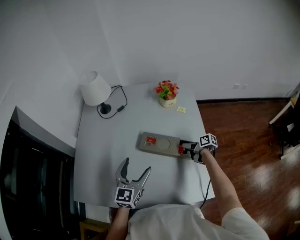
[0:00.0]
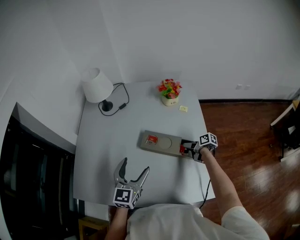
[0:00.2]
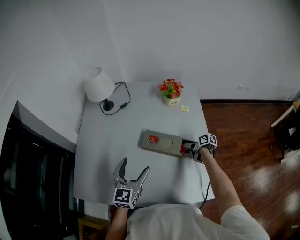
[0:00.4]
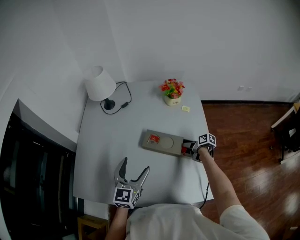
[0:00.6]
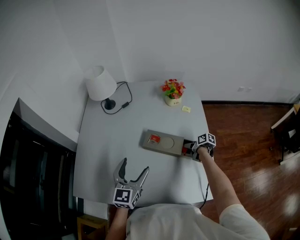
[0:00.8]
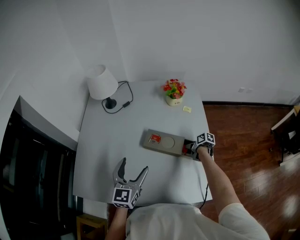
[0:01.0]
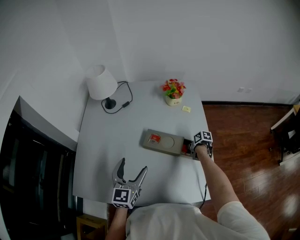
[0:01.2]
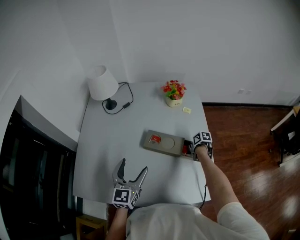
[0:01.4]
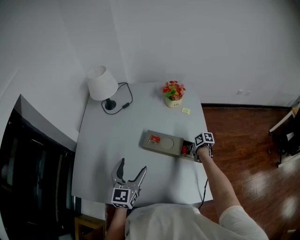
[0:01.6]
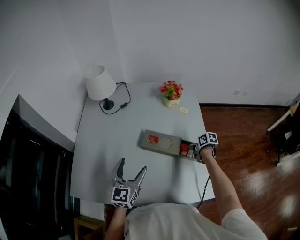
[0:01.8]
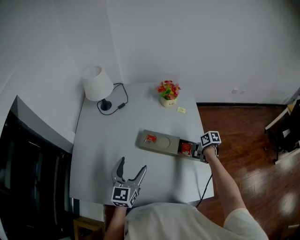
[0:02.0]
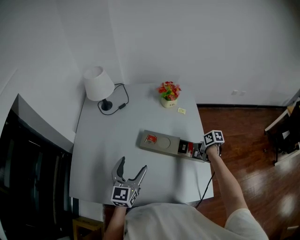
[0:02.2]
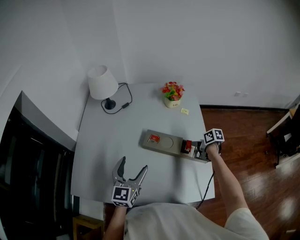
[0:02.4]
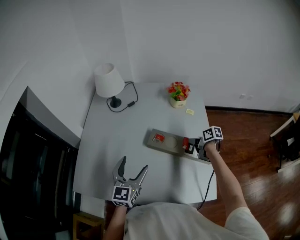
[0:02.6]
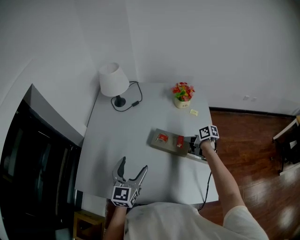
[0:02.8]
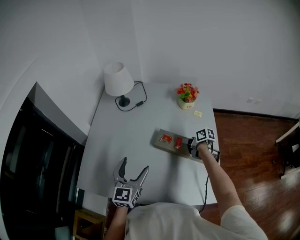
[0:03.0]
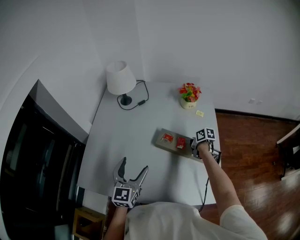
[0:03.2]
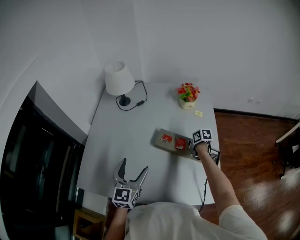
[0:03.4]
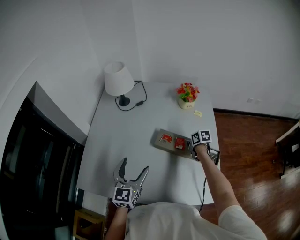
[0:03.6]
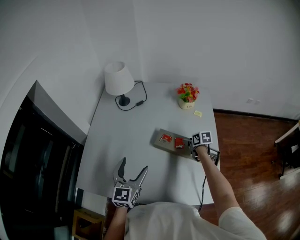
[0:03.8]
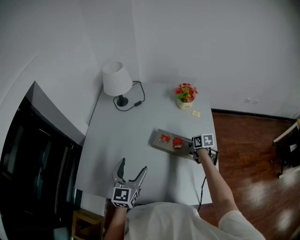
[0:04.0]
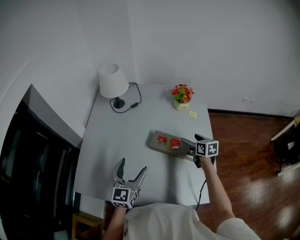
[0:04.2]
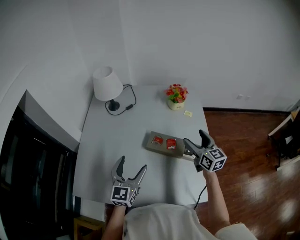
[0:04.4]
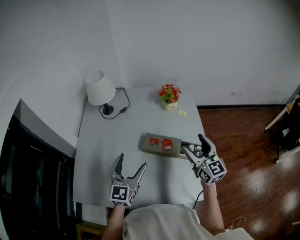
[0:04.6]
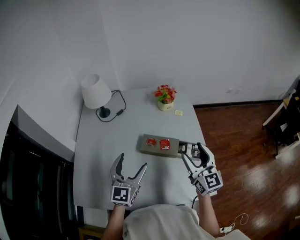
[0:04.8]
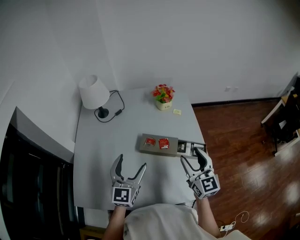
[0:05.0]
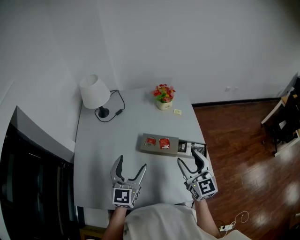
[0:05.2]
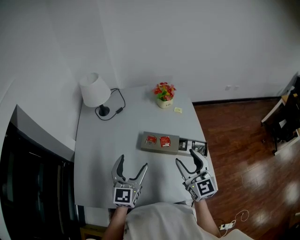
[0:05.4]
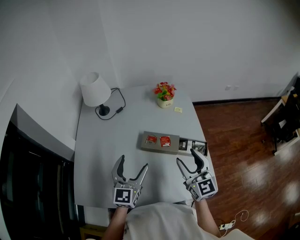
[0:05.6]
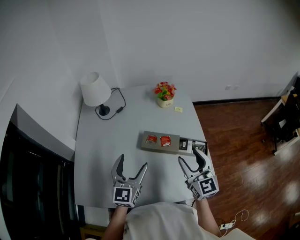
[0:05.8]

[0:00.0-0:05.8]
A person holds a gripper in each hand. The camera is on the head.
0.0 to 1.4 s: The right gripper heads downward, covering about 5 cm, swivels approximately 30 degrees, and closes.
1.4 to 2.8 s: The right gripper moves upward, to the left and forward, about 15 cm, and turns by approximately 30 degrees.
2.8 to 4.4 s: The right gripper moves upward, some 15 cm, swivels approximately 60 degrees, and opens its fingers.
4.4 to 5.8 s: The right gripper moves backward, approximately 15 cm, and turns by some 20 degrees.

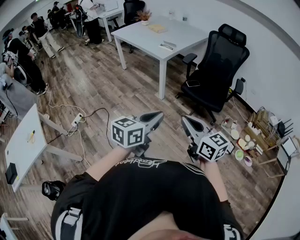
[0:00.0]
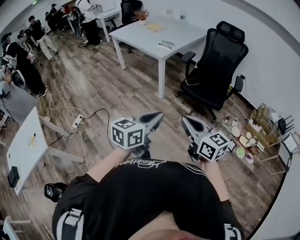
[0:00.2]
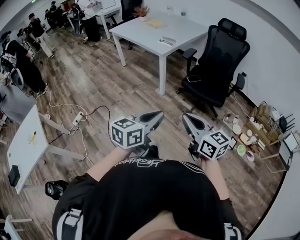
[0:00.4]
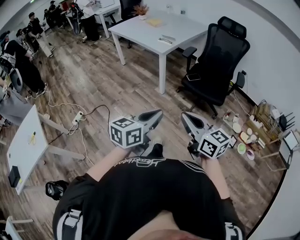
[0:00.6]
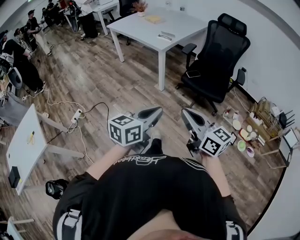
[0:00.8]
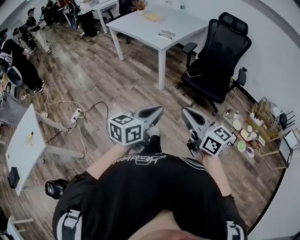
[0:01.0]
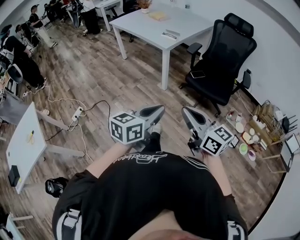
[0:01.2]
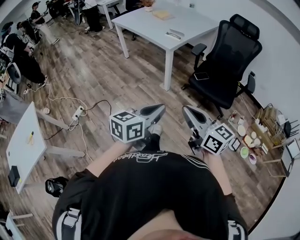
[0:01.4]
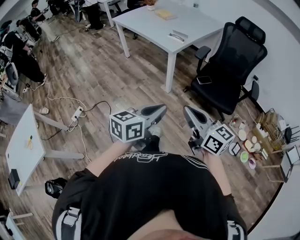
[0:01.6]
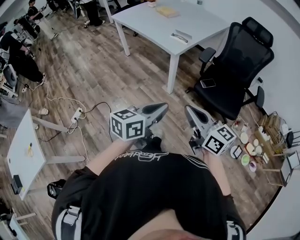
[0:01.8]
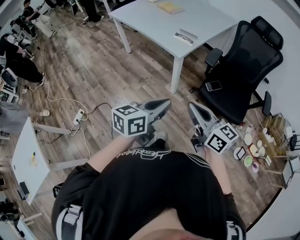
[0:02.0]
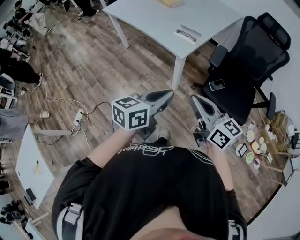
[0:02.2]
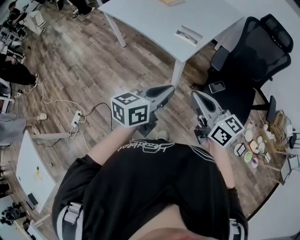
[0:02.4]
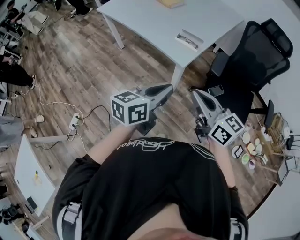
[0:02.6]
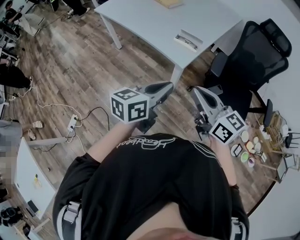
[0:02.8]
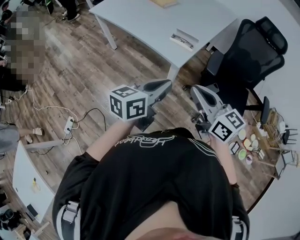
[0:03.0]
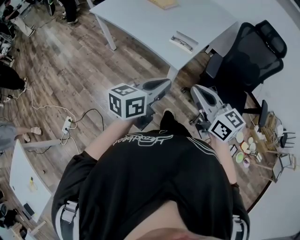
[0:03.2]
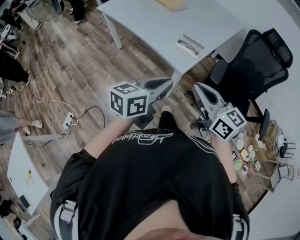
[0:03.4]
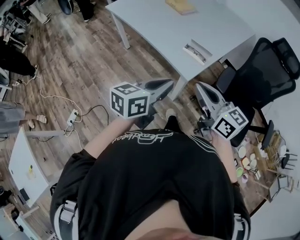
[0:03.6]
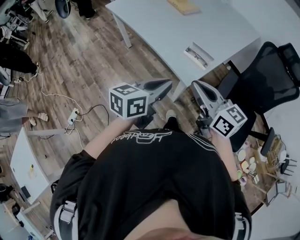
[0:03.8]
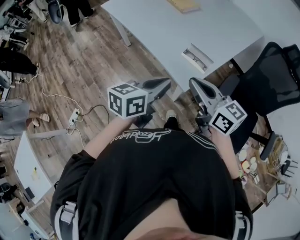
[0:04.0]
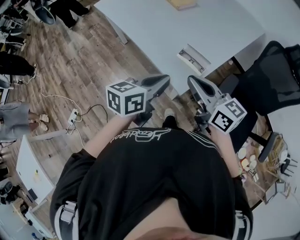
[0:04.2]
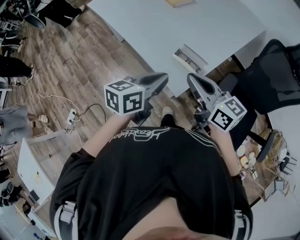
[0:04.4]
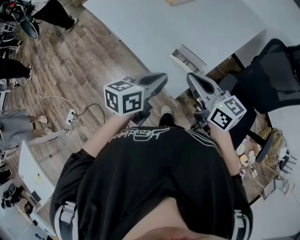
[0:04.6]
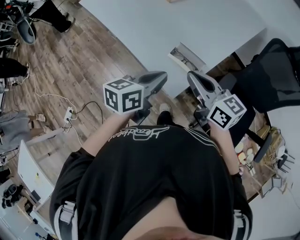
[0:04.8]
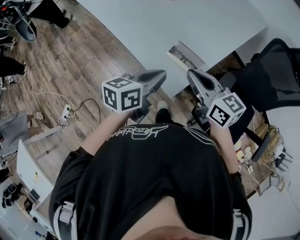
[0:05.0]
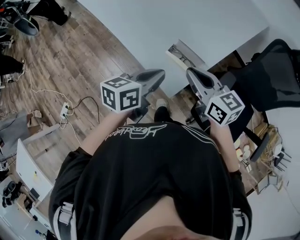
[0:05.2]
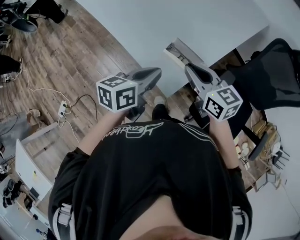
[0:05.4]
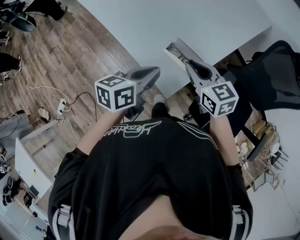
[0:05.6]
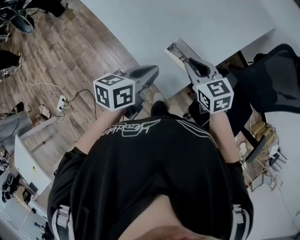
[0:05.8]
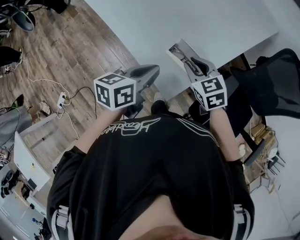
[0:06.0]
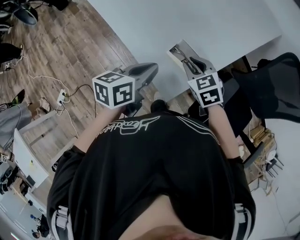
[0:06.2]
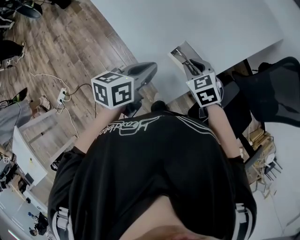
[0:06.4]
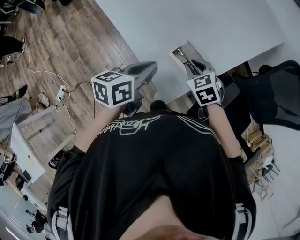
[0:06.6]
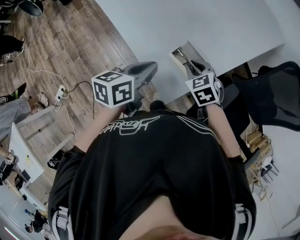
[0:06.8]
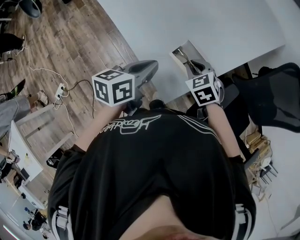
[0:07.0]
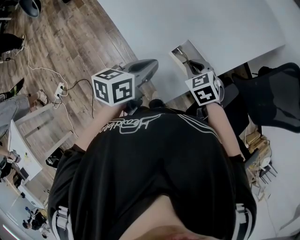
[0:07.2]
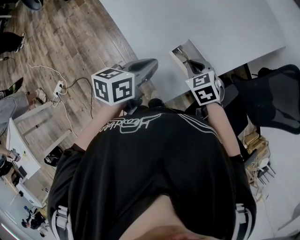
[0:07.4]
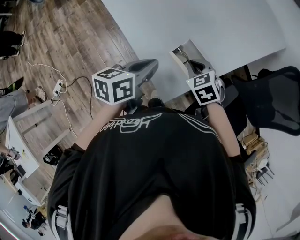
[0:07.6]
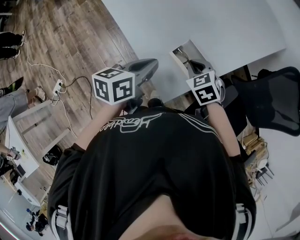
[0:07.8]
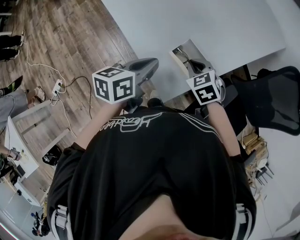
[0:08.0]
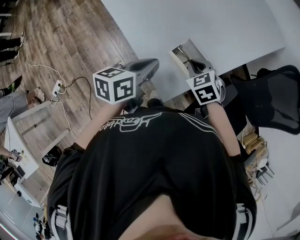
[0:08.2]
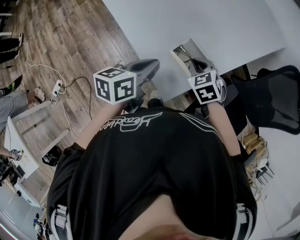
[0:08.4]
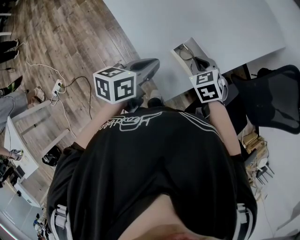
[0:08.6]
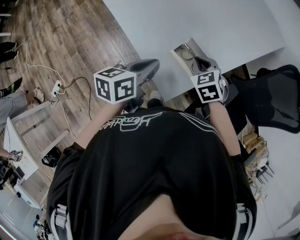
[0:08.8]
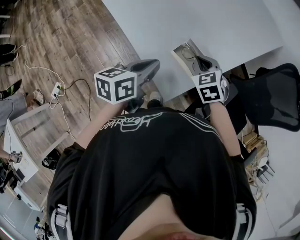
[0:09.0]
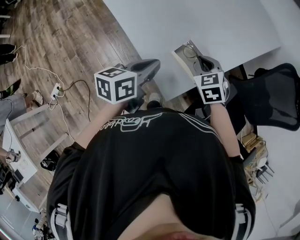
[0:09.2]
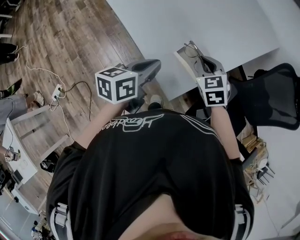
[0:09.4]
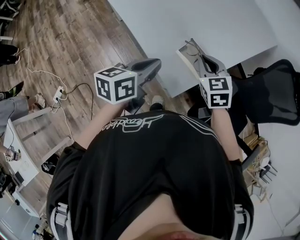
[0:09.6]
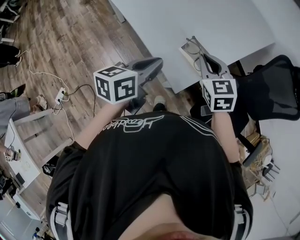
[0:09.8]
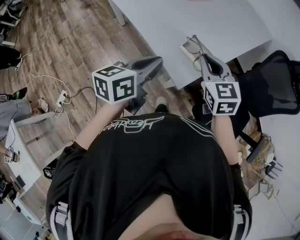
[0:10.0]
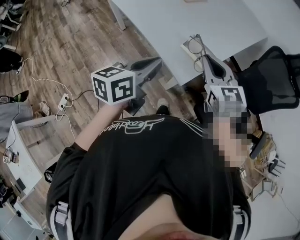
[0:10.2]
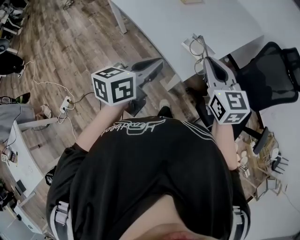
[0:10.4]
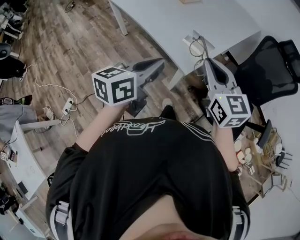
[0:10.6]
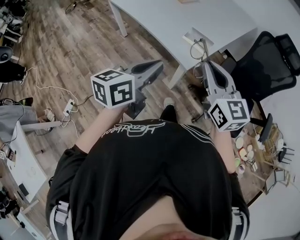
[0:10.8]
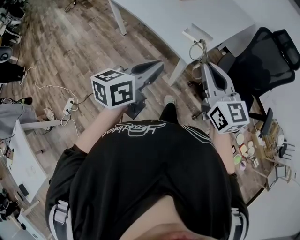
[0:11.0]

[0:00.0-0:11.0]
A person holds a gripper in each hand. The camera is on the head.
0.0 to 1.6 s: The two grippers go about 15 cm forward.
1.6 to 3.2 s: Both grippers travel together forward, approximately 40 cm.
3.2 to 4.8 s: Both grippers move forward, roughly 25 cm.
4.8 to 6.2 s: The left gripper shifts some 10 cm downward and forward; the right gripper goes about 20 cm downward and forward, and points its fingers about 40 degrees further downward.
6.2 to 7.8 s: The grippers move only a little.
7.8 to 9.4 s: The right gripper moves upward, some 5 cm.
9.4 to 11.0 s: The two grippers go approximately 35 cm backward and upward. The right gripper tilts its fingers some 40 degrees upward.

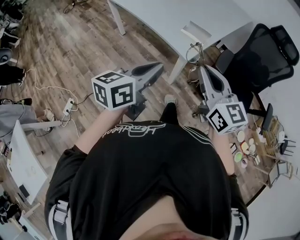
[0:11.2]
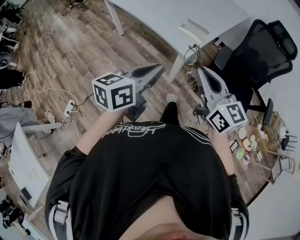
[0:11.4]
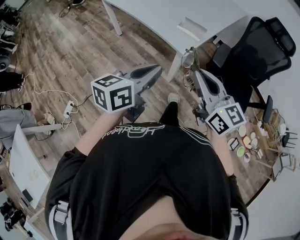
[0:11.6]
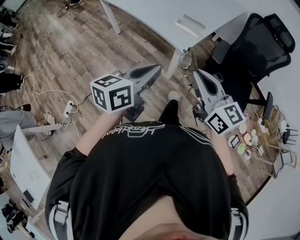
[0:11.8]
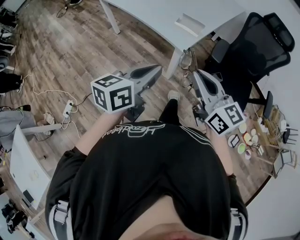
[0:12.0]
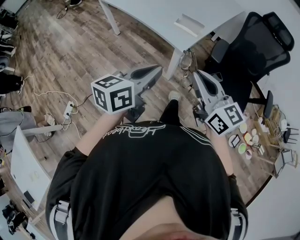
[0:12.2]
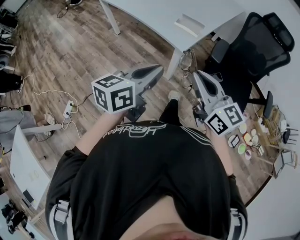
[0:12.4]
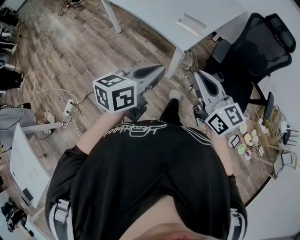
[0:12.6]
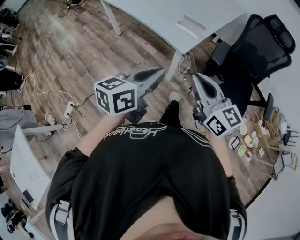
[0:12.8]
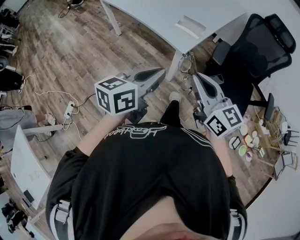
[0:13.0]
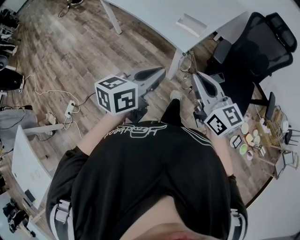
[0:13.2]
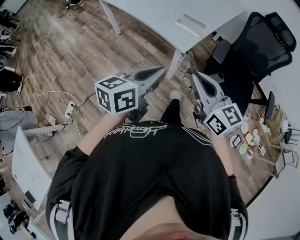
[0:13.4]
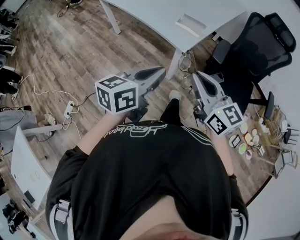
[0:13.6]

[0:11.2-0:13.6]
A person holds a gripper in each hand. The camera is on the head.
11.2 to 12.4 s: The right gripper travels backward by approximately 5 cm.
12.4 to 13.6 s: The grippers make only small movements.

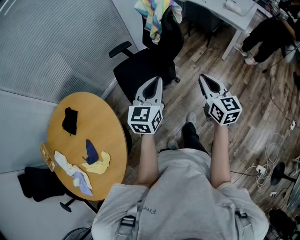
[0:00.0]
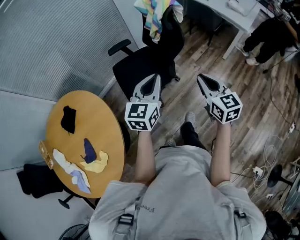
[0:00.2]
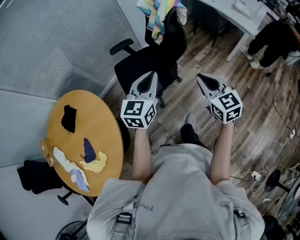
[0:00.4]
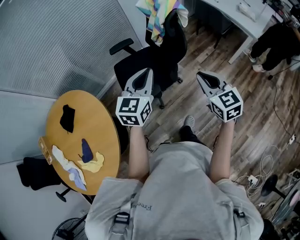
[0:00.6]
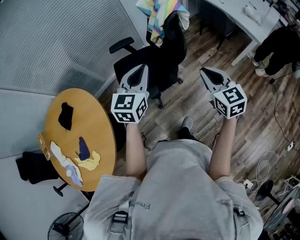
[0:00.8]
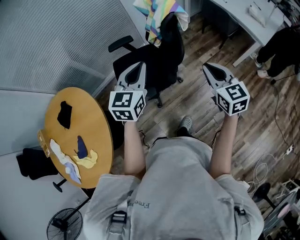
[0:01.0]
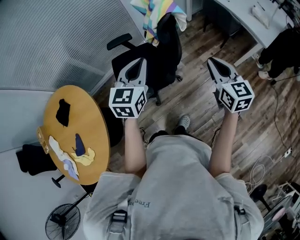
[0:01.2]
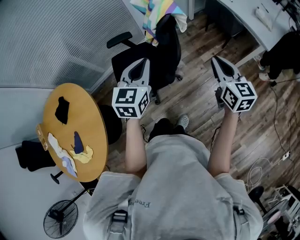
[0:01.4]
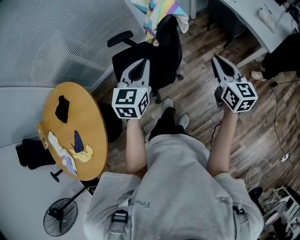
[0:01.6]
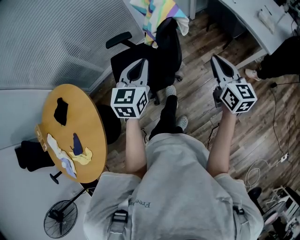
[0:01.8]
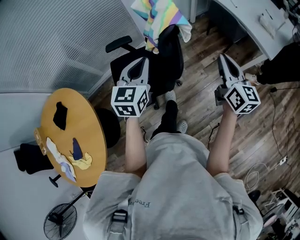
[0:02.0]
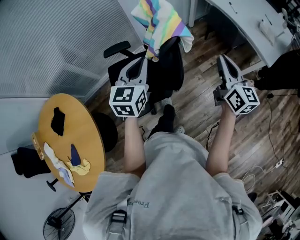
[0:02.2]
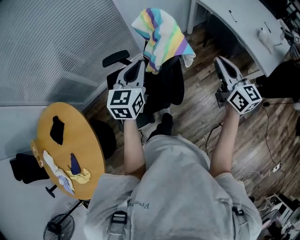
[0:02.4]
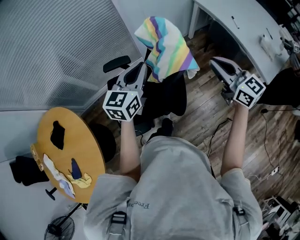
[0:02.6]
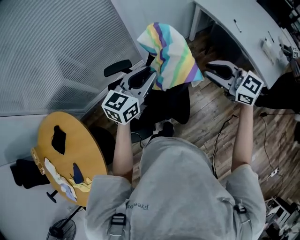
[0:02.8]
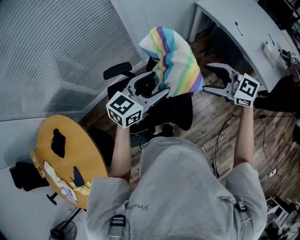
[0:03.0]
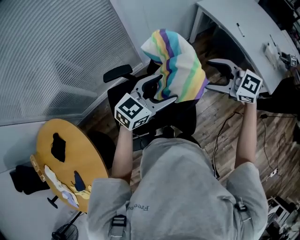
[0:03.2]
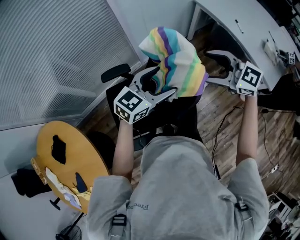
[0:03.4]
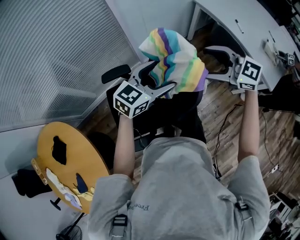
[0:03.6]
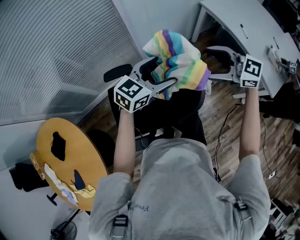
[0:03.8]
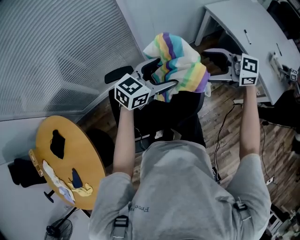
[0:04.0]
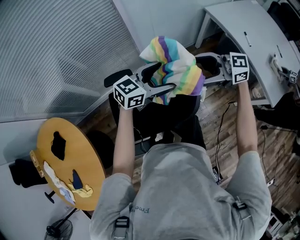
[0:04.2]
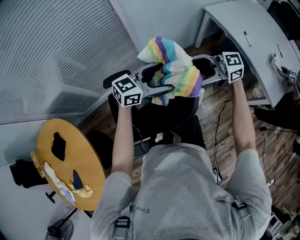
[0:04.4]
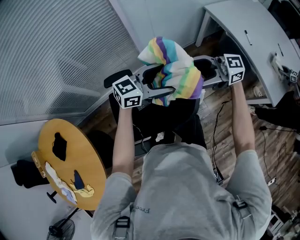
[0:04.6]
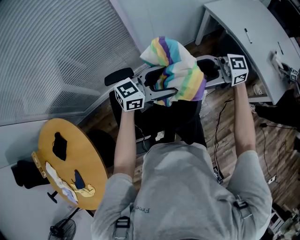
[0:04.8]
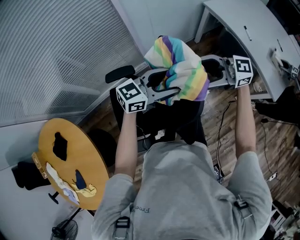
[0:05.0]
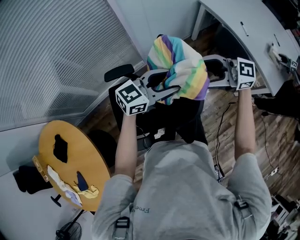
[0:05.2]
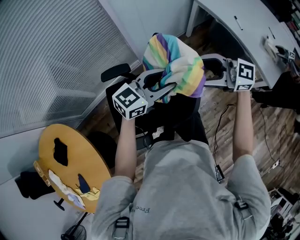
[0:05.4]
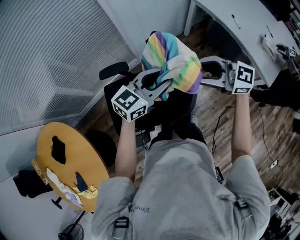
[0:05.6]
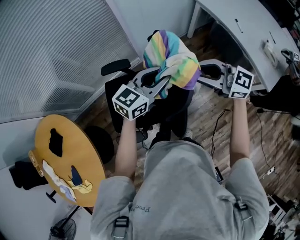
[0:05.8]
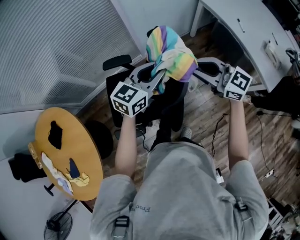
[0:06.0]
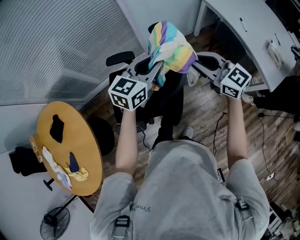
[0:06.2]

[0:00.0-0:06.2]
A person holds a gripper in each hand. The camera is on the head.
0.0 to 1.6 s: The right gripper shifts some 30 cm forward and to the right. Meanwhile the left gripper is displaced forward by some 20 cm.
1.6 to 3.2 s: The right gripper moves roughly 25 cm, swivels some 60 degrees, and opens its fingers. The left gripper shifts by about 20 cm, turns by about 40 degrees, and opens.
3.2 to 4.6 s: The left gripper shifts by roughly 10 cm; the right gripper shifts by some 10 cm, and turns by some 40 degrees.
4.6 to 6.2 s: The right gripper ends up some 10 cm from where it was, rotates about 40 degrees, and closes; the left gripper shifts by some 10 cm, rotates some 30 degrees, and closes its fingers.
